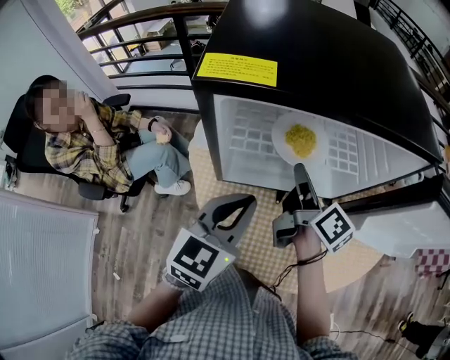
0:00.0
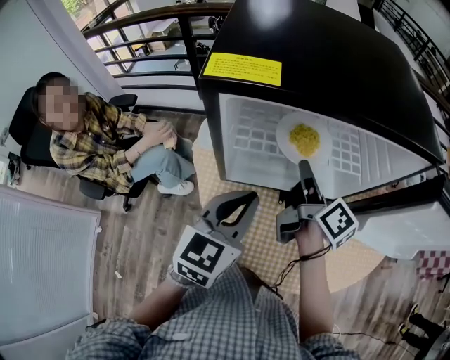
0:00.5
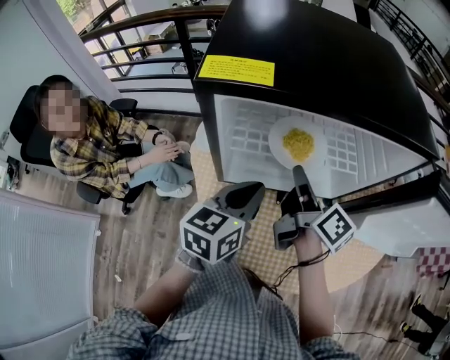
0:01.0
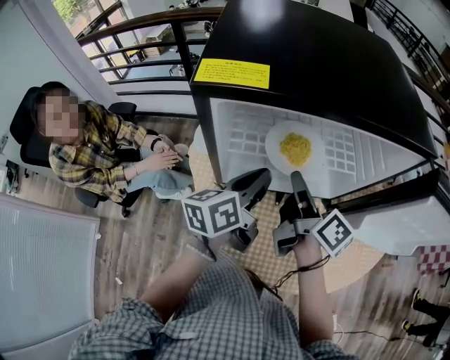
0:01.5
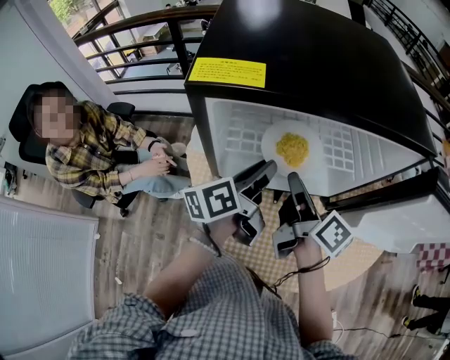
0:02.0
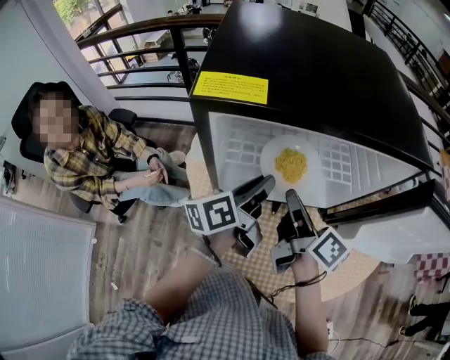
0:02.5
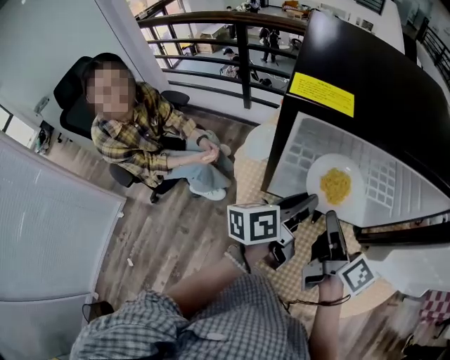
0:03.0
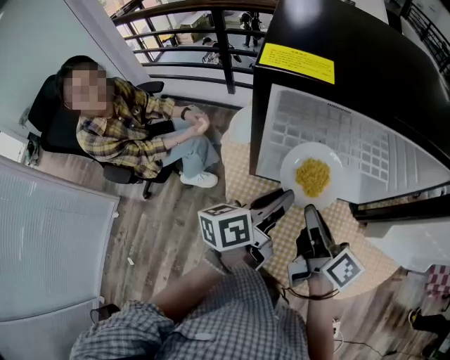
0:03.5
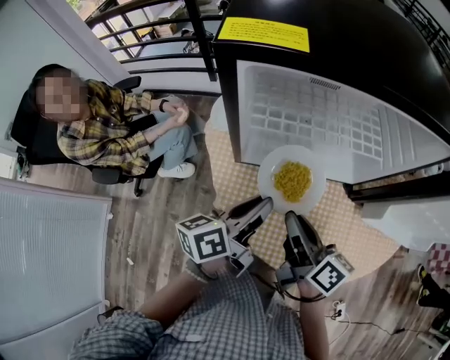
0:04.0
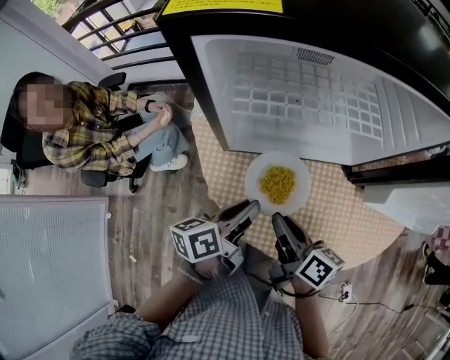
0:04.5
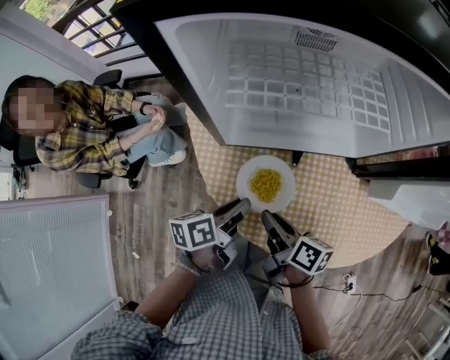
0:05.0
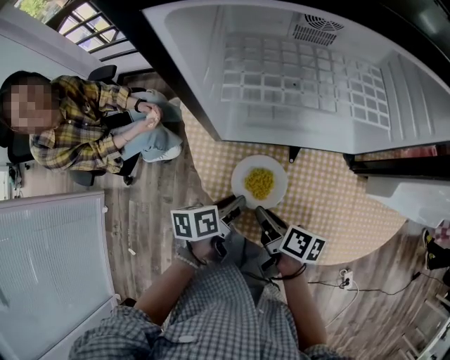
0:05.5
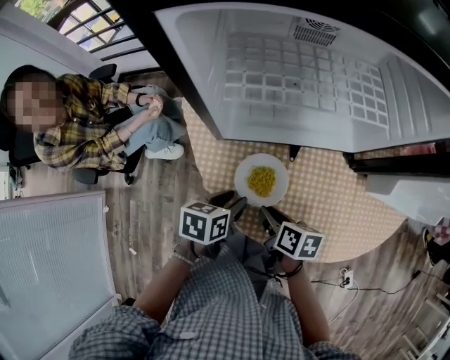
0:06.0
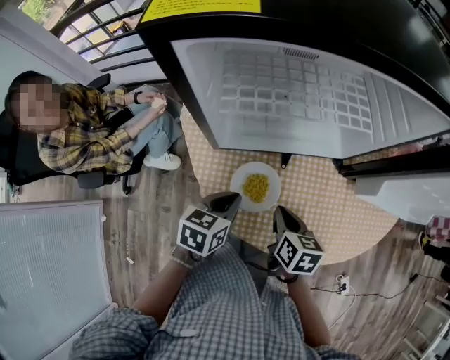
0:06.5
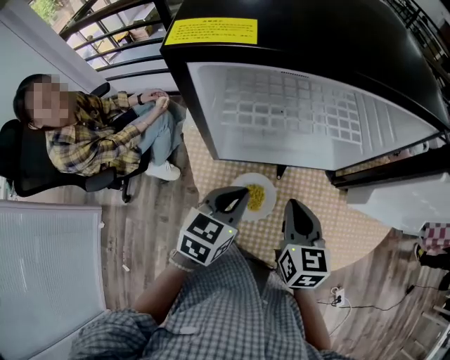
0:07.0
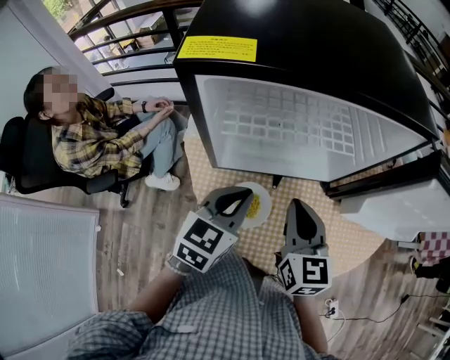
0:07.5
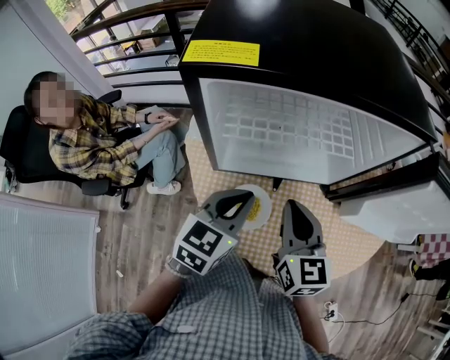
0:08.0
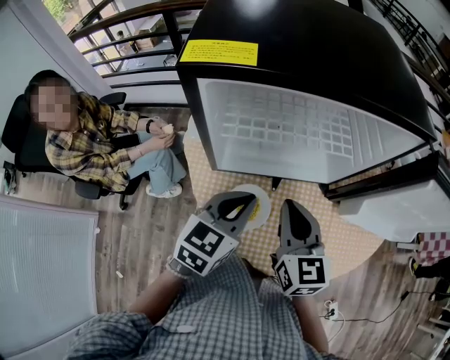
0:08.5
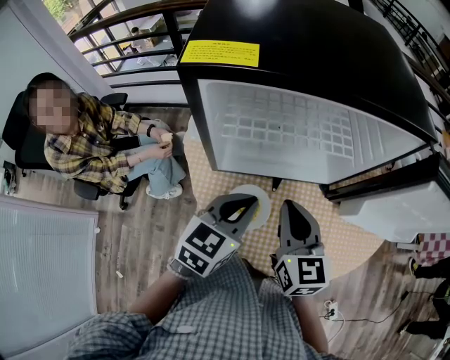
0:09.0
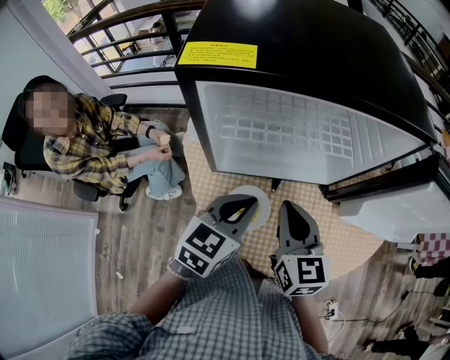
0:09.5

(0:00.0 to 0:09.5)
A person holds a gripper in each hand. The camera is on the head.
0:00.0 - 0:02.0: The left gripper goes approximately 10 cm forward, rotates around the line of its fingers by approximately 50 degrees, counterclockwise from behind, and opens.
0:02.0 - 0:04.0: The two grippers go roughly 15 cm backward and downward.
0:04.0 - 0:05.5: Both grippers move downward, roughly 20 cm. The right gripper changes its angle by about 30 degrees. Meanwhile the left gripper turns by approximately 30 degrees.
0:05.5 - 0:07.5: Both grippers move upward, some 20 cm. The right gripper rolls counterclockwise, seen from behind, by about 60 degrees, while the left gripper rolls clockwise, seen from behind, by some 60 degrees.
0:07.5 - 0:09.5: The grippers make only small movements.

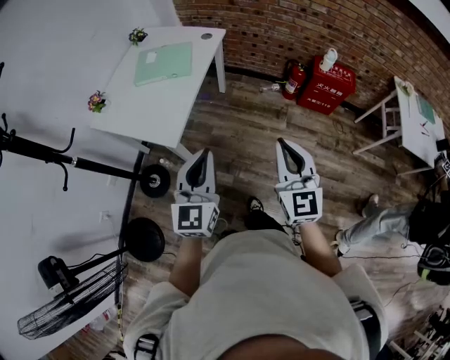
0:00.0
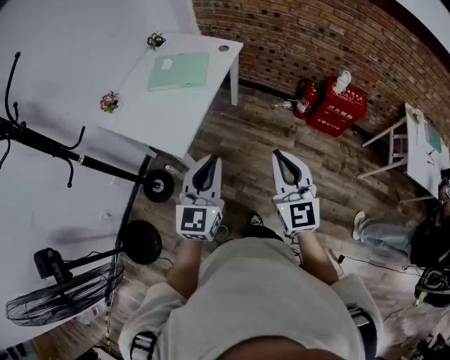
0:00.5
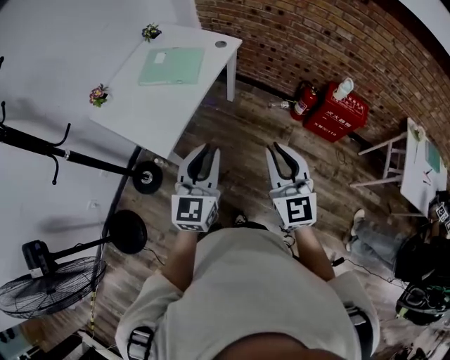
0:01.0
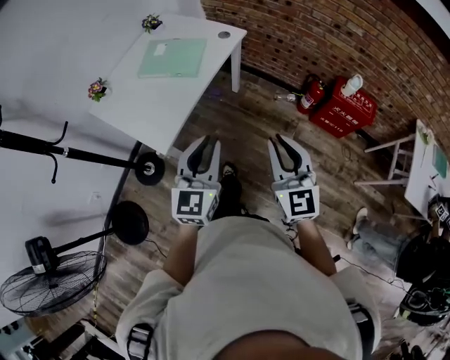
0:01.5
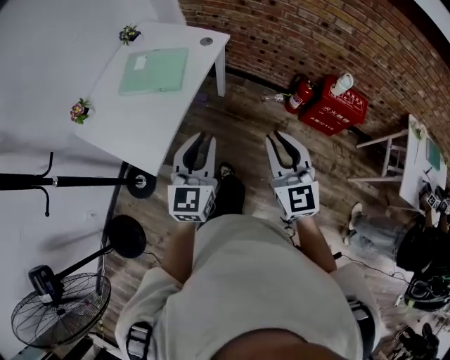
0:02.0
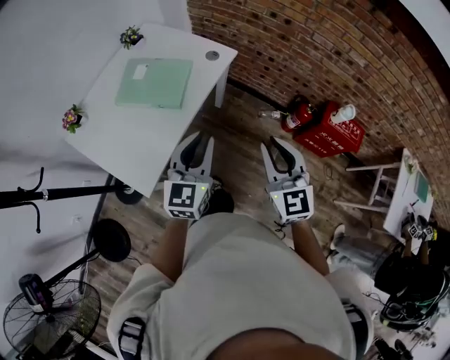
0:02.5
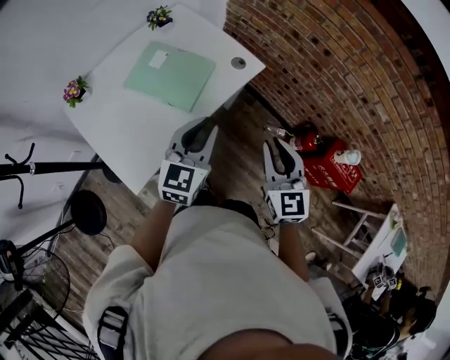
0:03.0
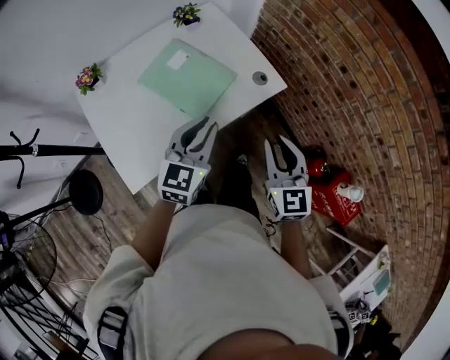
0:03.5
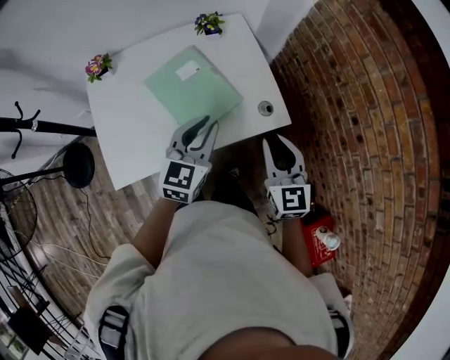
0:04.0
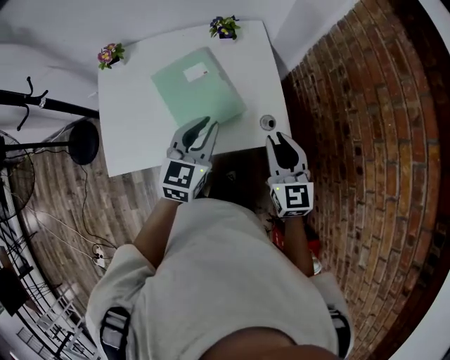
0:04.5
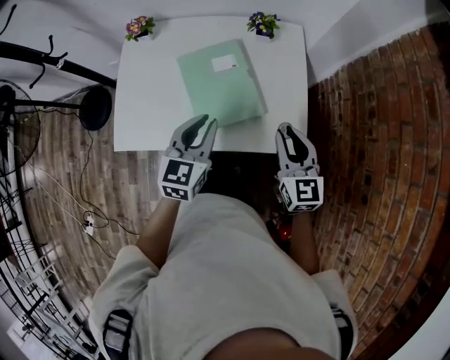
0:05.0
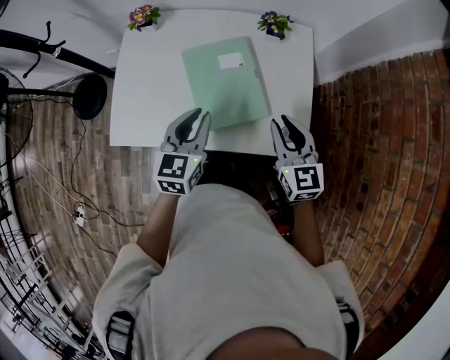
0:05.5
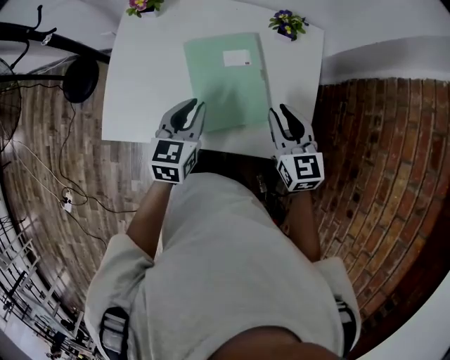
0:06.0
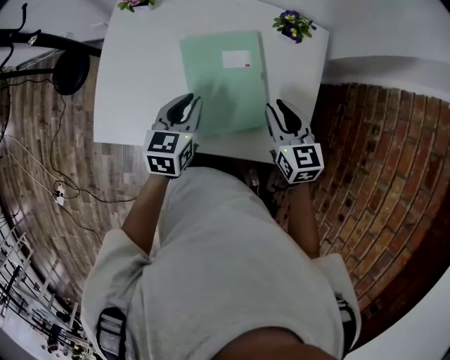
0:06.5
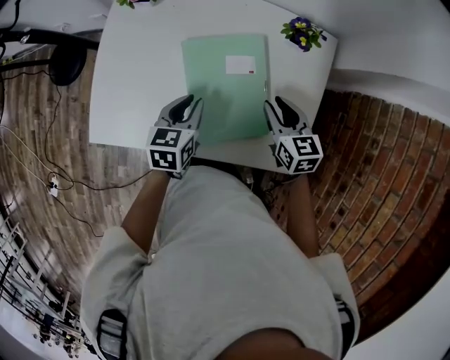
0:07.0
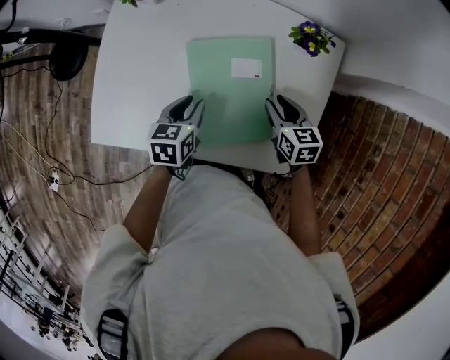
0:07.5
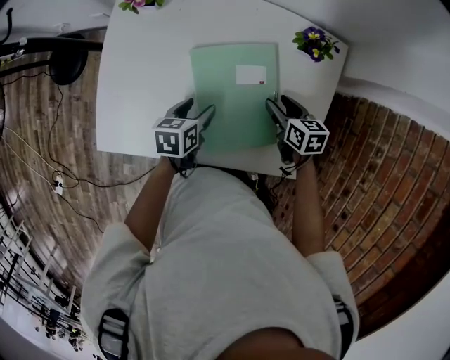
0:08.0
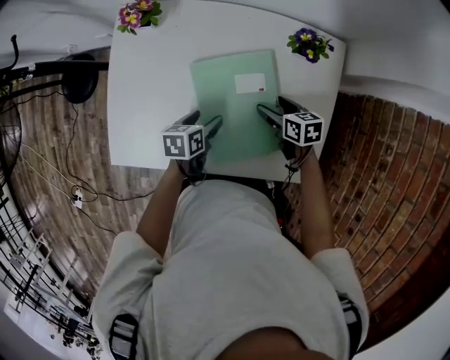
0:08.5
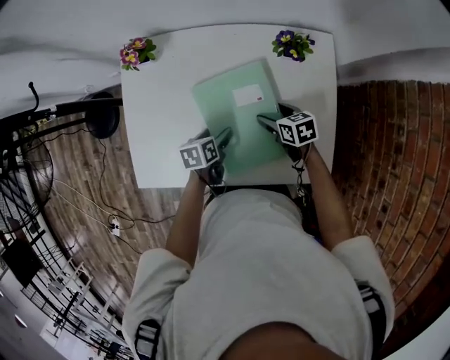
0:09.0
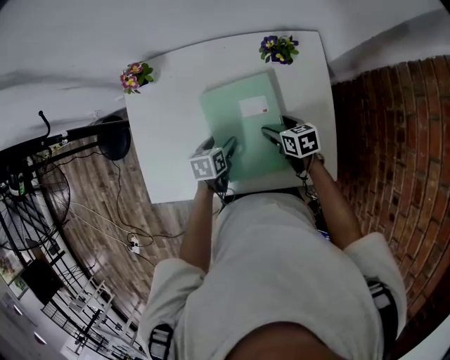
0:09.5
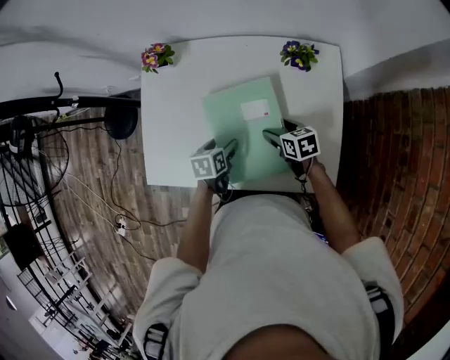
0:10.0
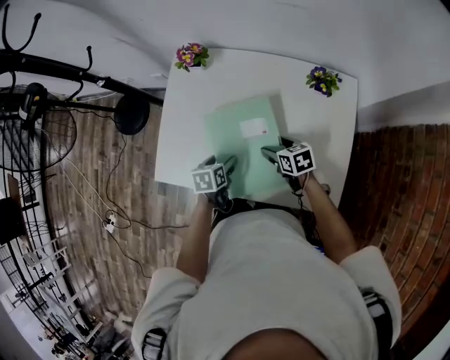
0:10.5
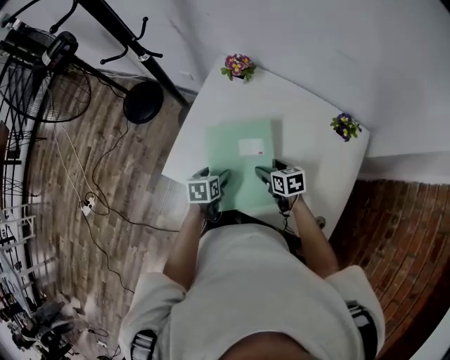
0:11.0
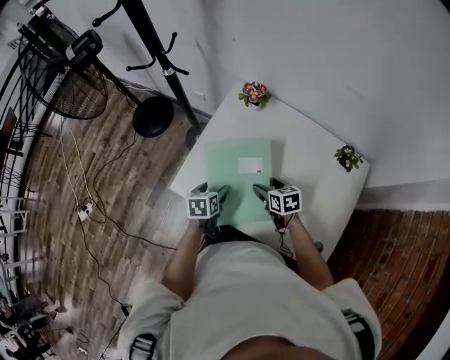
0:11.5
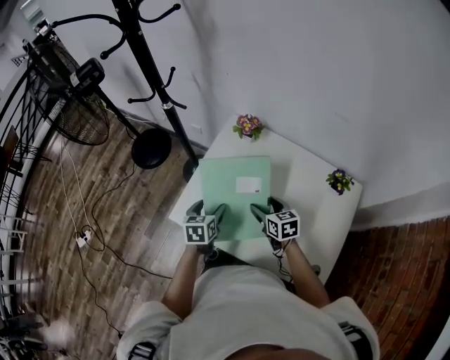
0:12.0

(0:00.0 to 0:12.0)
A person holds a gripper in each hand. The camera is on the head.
0:00.0 - 0:02.0: The grippers both shift forward by about 25 cm.
0:02.0 - 0:04.0: Both grippers are carried about 50 cm. The left gripper swivels roughly 30 degrees, while the right gripper changes its angle by roughly 40 degrees.
0:04.0 - 0:06.0: The left gripper ends up approximately 15 cm from where it was, and swivels roughly 40 degrees. The right gripper shifts by about 20 cm, and changes its angle by roughly 30 degrees.
0:06.0 - 0:08.0: The two grippers go roughly 20 cm downward and forward. The right gripper swivels about 40 degrees, and opens up, while the left gripper rotates some 30 degrees, and opens.
0:08.0 - 0:10.0: There are only small adjustments of the grippers.
0:10.0 - 0:12.0: Both grippers move to the left and upward, approximately 25 cm. The right gripper changes its angle by approximately 20 degrees, while the left gripper changes its angle by approximately 30 degrees.

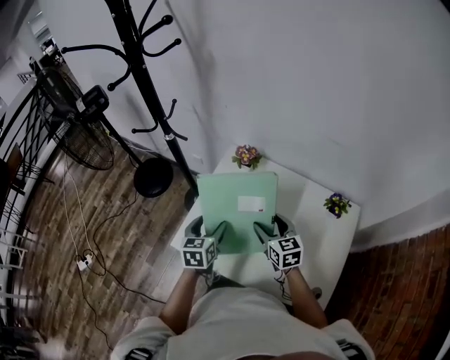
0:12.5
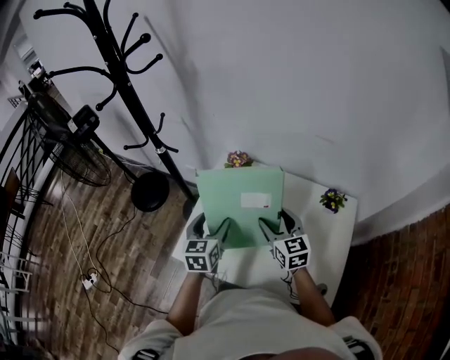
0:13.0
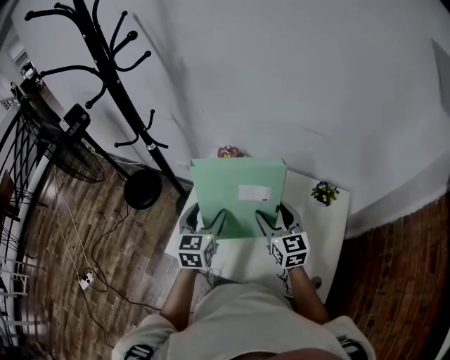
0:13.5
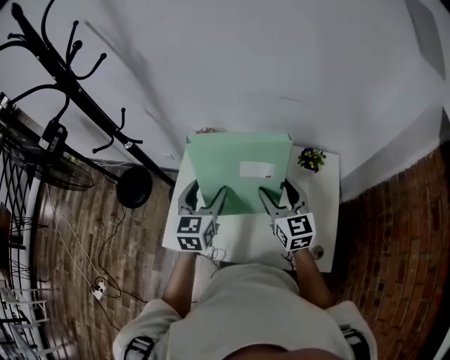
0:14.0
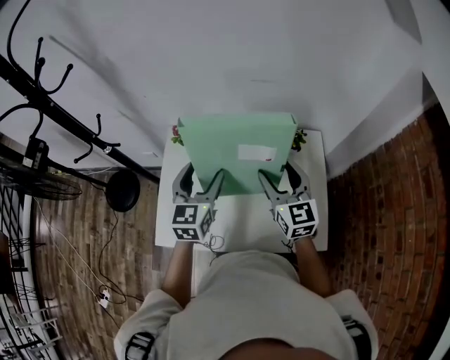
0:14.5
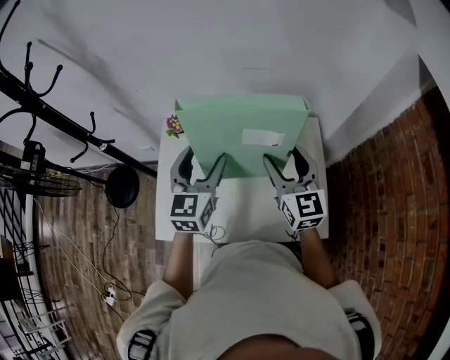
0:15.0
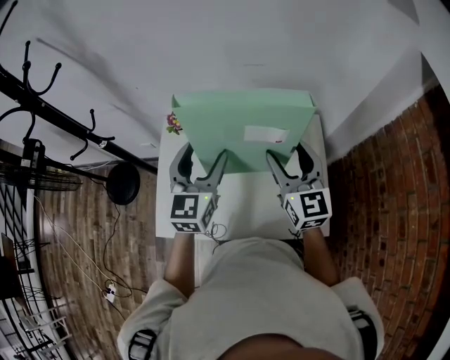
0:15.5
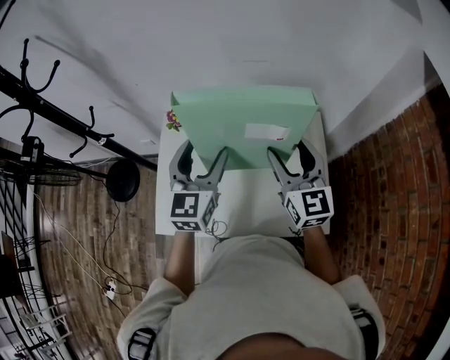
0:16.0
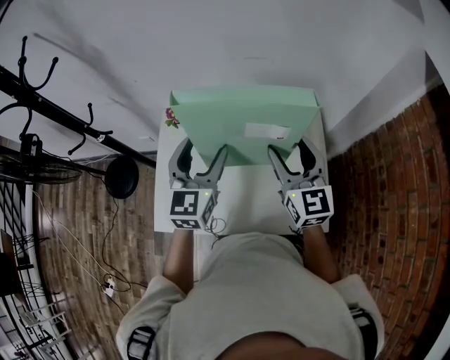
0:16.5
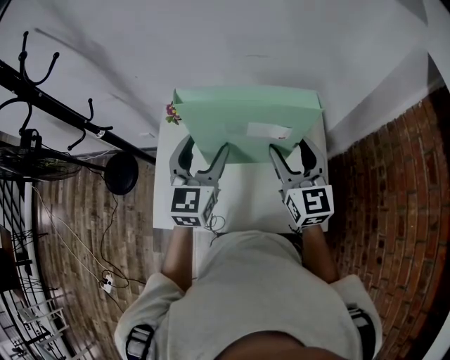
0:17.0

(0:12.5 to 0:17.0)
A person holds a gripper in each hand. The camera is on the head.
0:12.5 - 0:14.5: Both grippers move to the right and upward, approximately 20 cm. The right gripper rotates roughly 30 degrees; the left gripper turns by approximately 30 degrees.
0:14.5 - 0:17.0: The left gripper shifts by roughly 5 cm, while the right gripper ends up some 5 cm from where it was.
